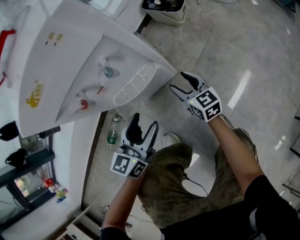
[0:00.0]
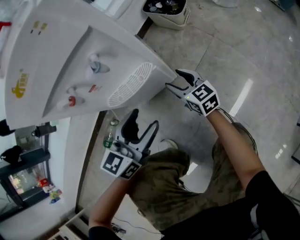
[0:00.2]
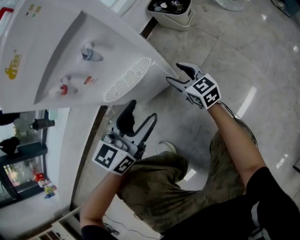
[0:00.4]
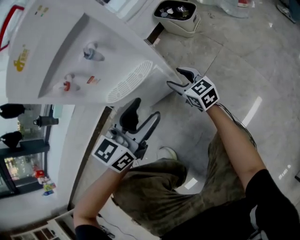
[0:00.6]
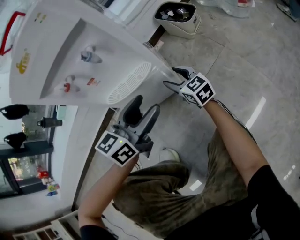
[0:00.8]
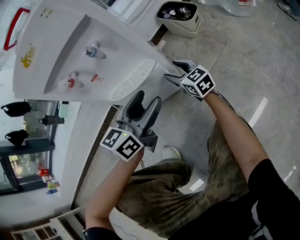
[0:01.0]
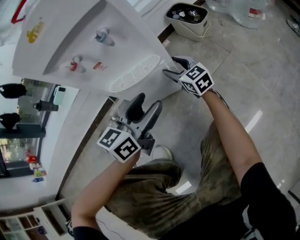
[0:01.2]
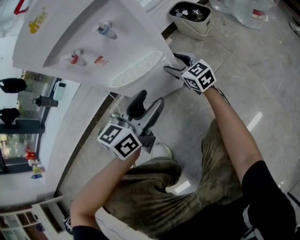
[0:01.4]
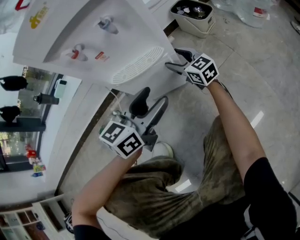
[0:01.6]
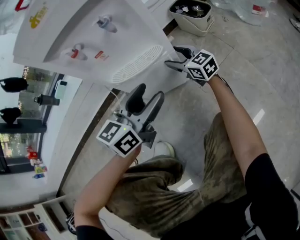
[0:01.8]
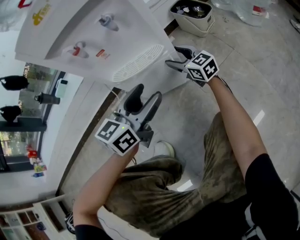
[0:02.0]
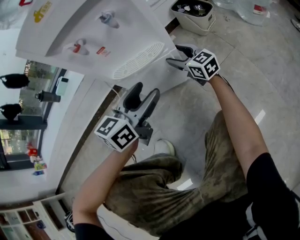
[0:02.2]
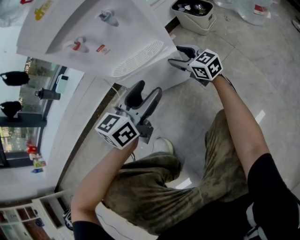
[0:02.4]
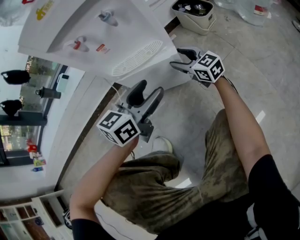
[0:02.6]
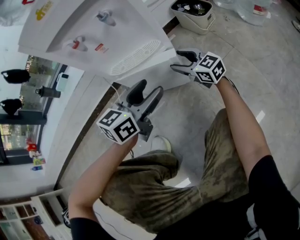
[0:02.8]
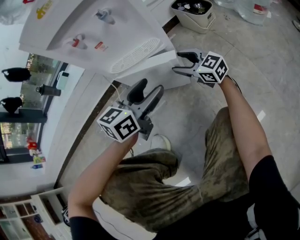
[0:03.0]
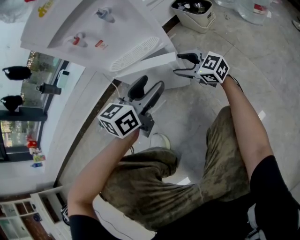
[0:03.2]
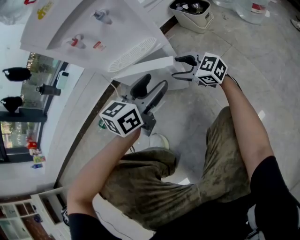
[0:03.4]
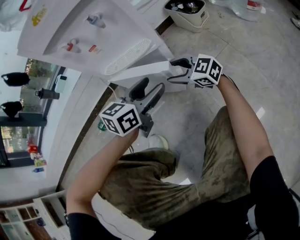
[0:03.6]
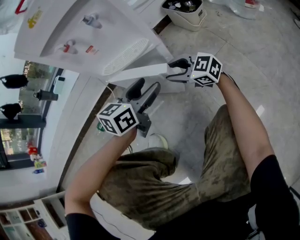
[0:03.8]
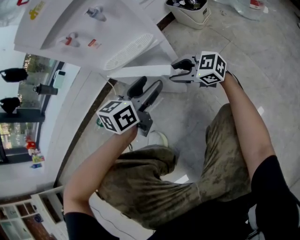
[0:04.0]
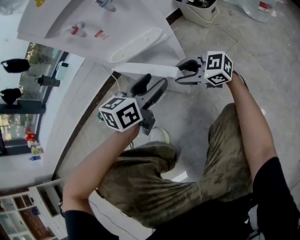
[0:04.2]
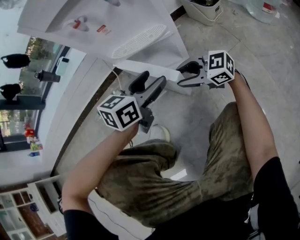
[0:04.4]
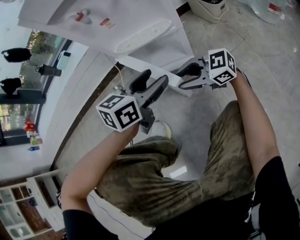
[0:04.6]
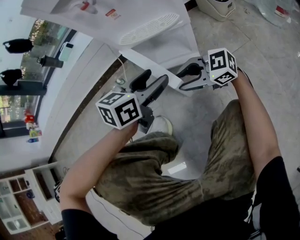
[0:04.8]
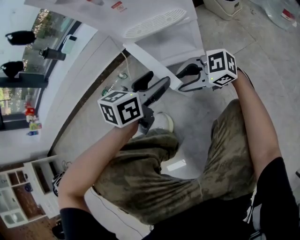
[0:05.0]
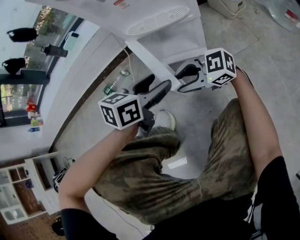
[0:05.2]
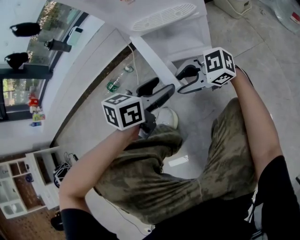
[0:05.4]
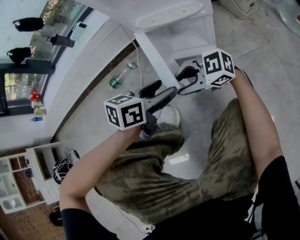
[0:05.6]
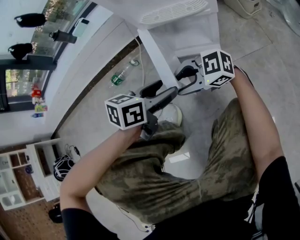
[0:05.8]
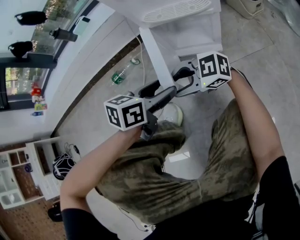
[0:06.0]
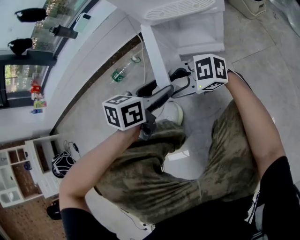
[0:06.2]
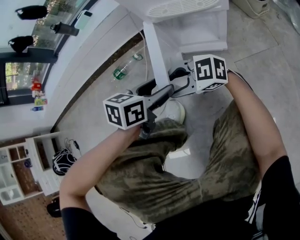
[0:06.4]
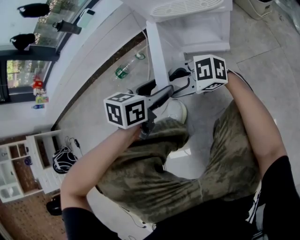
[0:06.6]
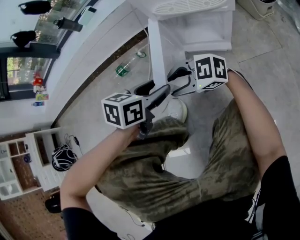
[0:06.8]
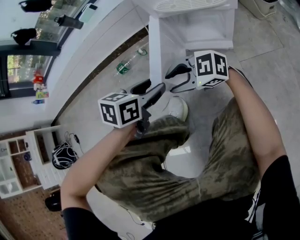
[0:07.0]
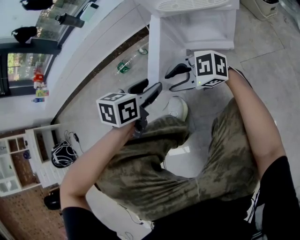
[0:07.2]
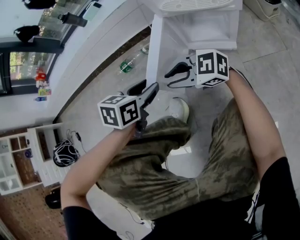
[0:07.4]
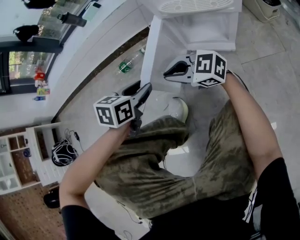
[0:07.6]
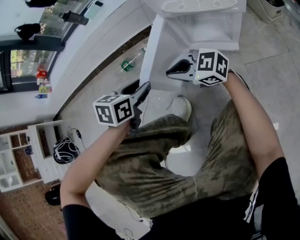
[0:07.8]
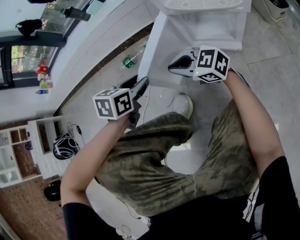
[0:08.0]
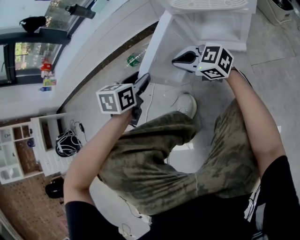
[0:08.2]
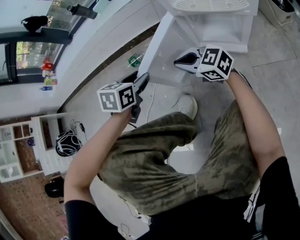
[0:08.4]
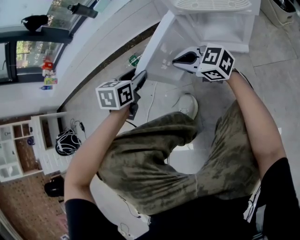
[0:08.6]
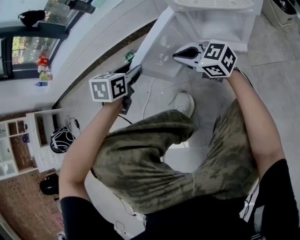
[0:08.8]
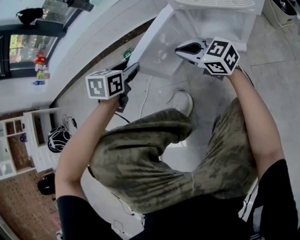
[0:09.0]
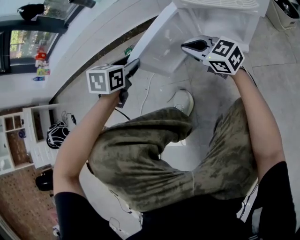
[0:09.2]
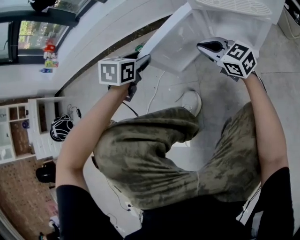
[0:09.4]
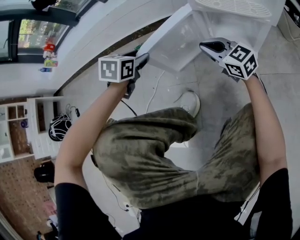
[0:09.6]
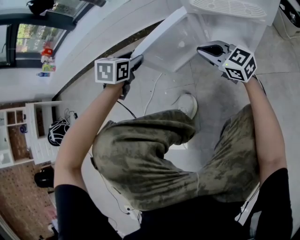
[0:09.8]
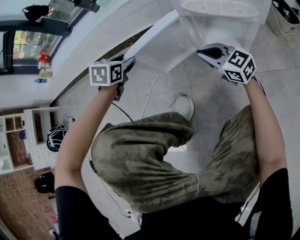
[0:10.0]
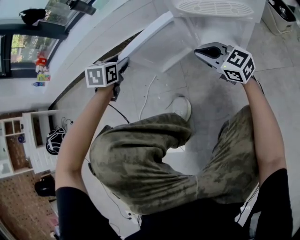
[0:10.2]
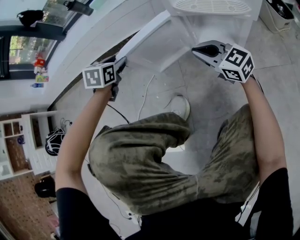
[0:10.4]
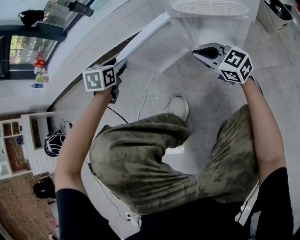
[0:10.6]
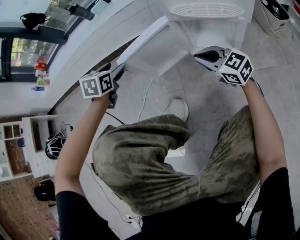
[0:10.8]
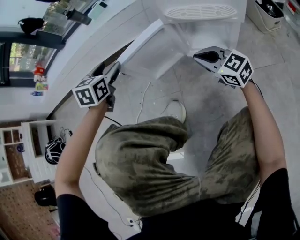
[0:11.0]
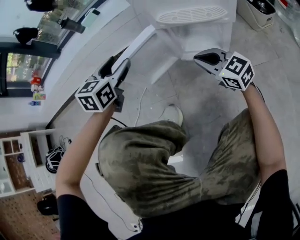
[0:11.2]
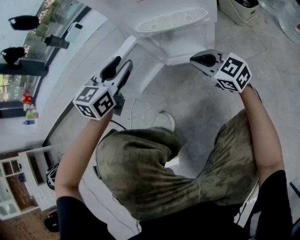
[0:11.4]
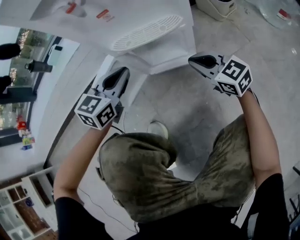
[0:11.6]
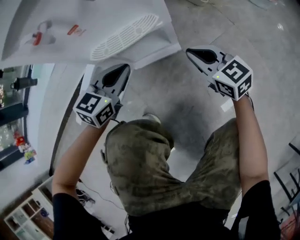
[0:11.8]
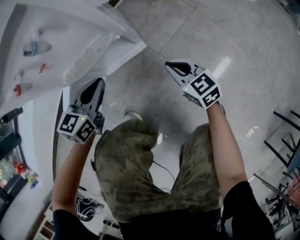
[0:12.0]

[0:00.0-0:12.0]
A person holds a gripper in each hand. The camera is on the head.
0:00.0 to 0:01.6: The left gripper changes place by roughly 5 cm. The right gripper is displaced forward by about 10 cm, and turns by roughly 30 degrees.
0:01.6 to 0:03.0: The right gripper moves backward, roughly 5 cm.
0:03.0 to 0:04.4: The right gripper changes place by approximately 10 cm, swivels approximately 30 degrees, and closes up.
0:04.4 to 0:06.0: The right gripper ends up approximately 15 cm from where it was, and rotates some 30 degrees; the left gripper changes place by about 15 cm, and swivels roughly 20 degrees.
0:06.0 to 0:07.6: The left gripper changes place by about 15 cm, changes its angle by roughly 20 degrees, and closes up. Meanwhile the right gripper shifts by roughly 5 cm, and closes.
0:07.6 to 0:09.0: The left gripper shifts approximately 10 cm forward. The right gripper is displaced forward by approximately 5 cm.
0:09.0 to 0:10.4: The left gripper is displaced forward by approximately 10 cm. The right gripper goes approximately 5 cm to the right.
0:10.4 to 0:12.0: The right gripper shifts by roughly 25 cm, and rotates about 50 degrees; the left gripper moves some 35 cm, turns by about 50 degrees, and closes.

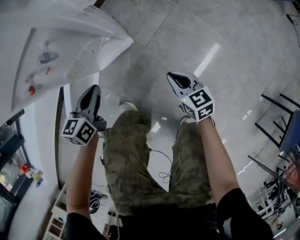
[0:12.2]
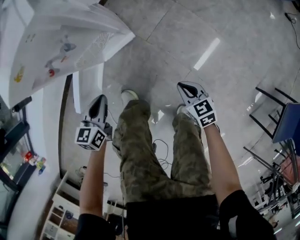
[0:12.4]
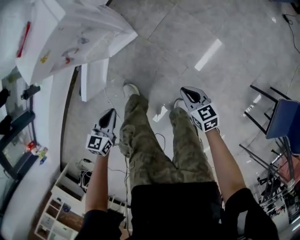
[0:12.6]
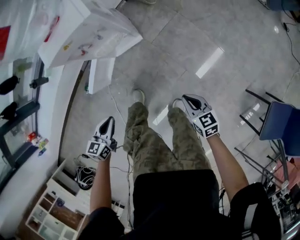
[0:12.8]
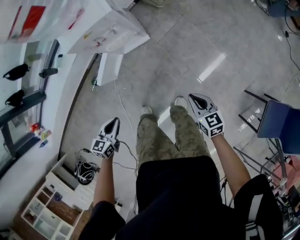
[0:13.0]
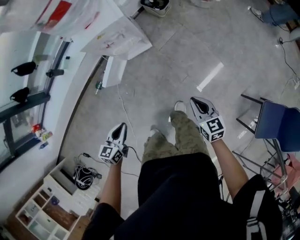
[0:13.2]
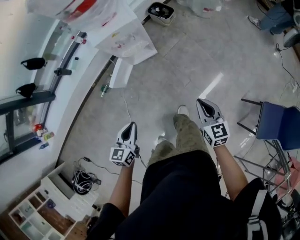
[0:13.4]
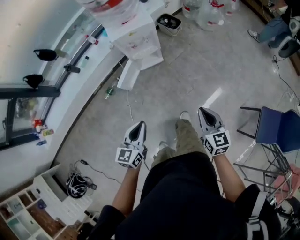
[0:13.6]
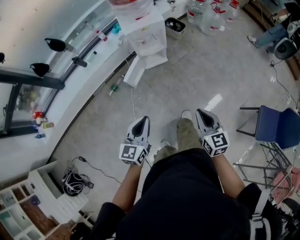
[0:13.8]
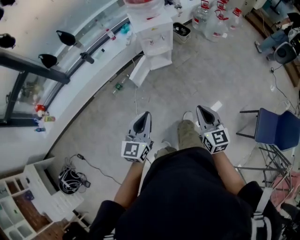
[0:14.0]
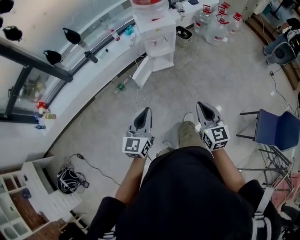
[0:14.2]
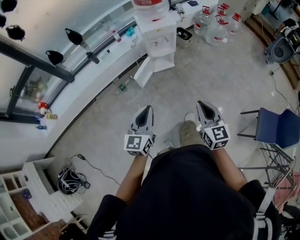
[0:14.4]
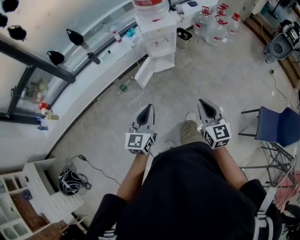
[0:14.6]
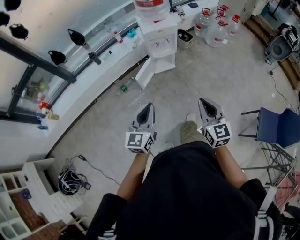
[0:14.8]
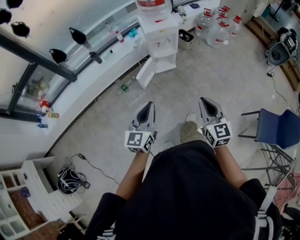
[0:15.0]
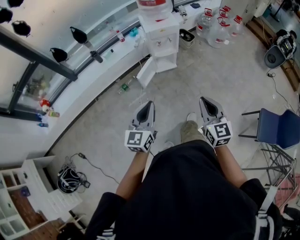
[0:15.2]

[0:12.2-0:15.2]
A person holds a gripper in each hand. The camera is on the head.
0:12.2 to 0:13.8: Both grippers are carried backward, roughly 40 cm. The grippers both shift upward by about 60 cm. The left gripper swivels about 20 degrees.
0:13.8 to 0:15.2: The left gripper travels backward, upward and to the left by approximately 15 cm, while the right gripper shifts some 15 cm upward, backward and to the left.

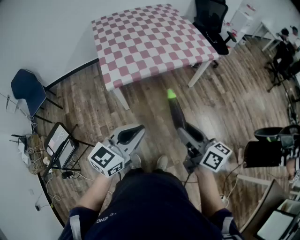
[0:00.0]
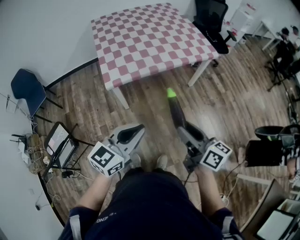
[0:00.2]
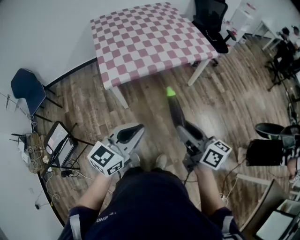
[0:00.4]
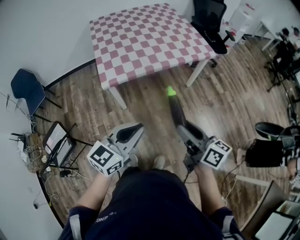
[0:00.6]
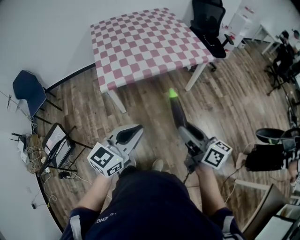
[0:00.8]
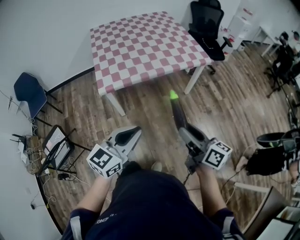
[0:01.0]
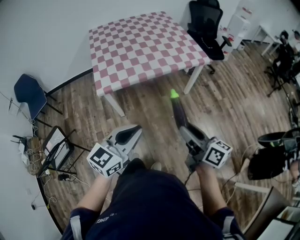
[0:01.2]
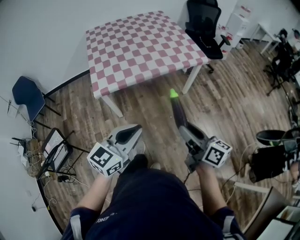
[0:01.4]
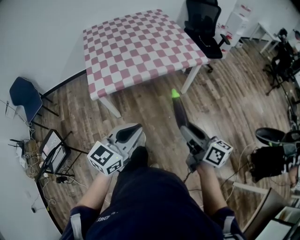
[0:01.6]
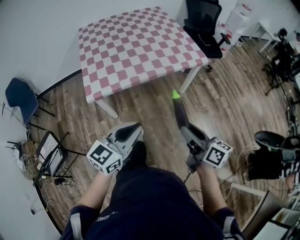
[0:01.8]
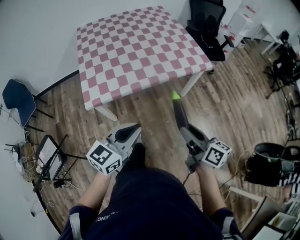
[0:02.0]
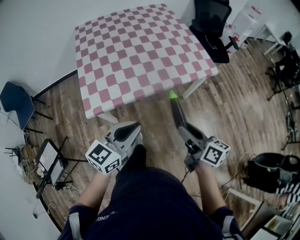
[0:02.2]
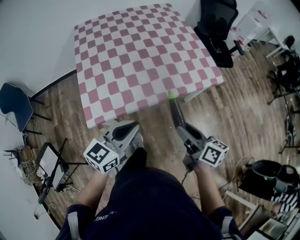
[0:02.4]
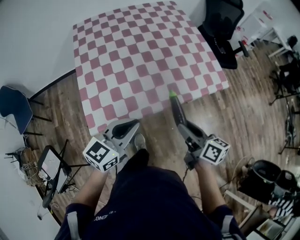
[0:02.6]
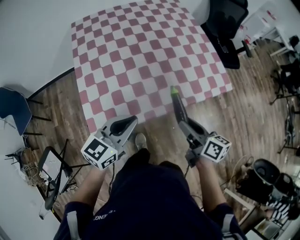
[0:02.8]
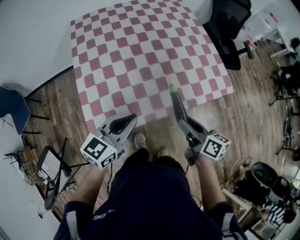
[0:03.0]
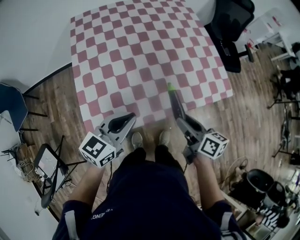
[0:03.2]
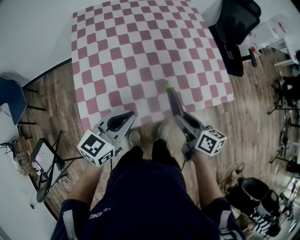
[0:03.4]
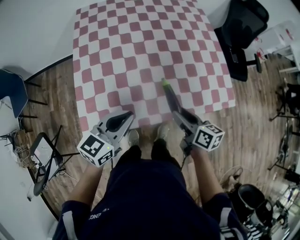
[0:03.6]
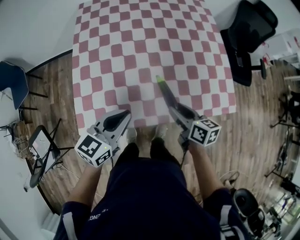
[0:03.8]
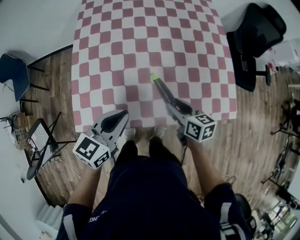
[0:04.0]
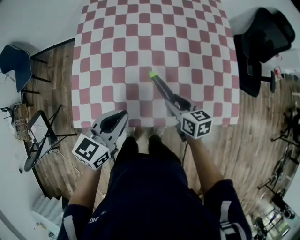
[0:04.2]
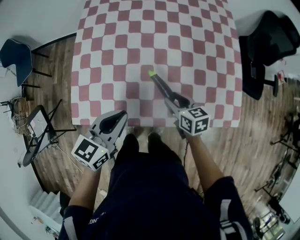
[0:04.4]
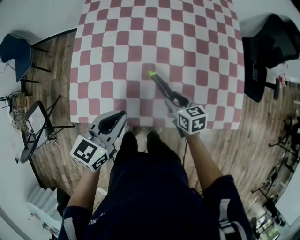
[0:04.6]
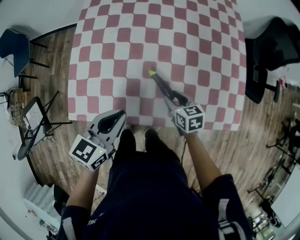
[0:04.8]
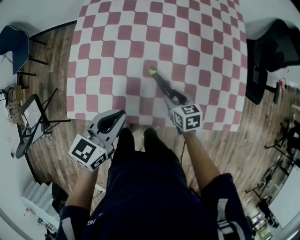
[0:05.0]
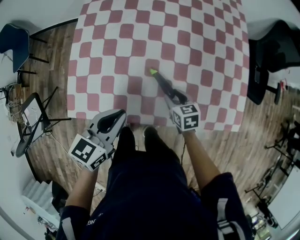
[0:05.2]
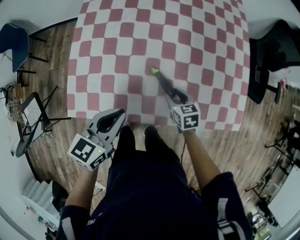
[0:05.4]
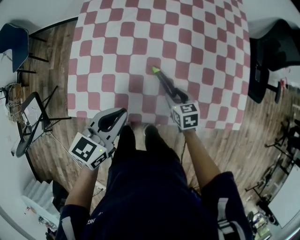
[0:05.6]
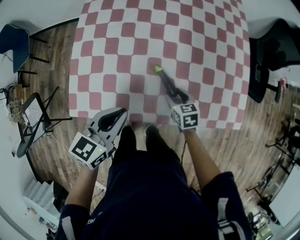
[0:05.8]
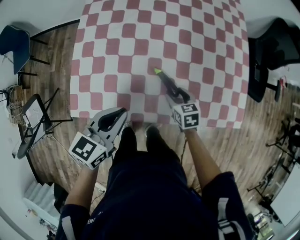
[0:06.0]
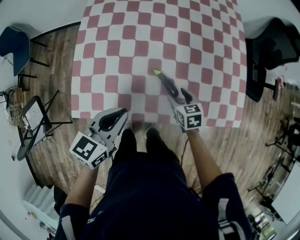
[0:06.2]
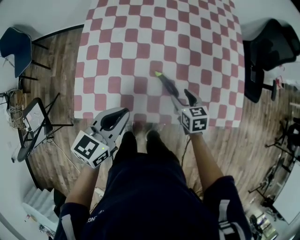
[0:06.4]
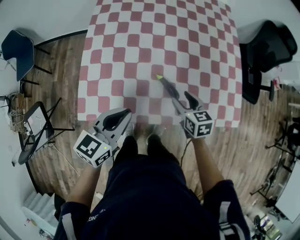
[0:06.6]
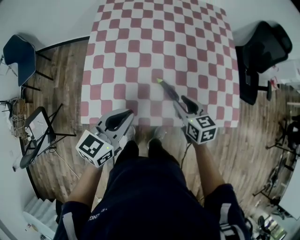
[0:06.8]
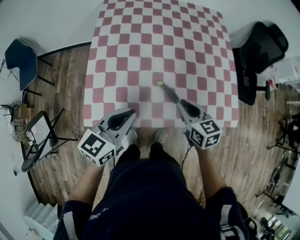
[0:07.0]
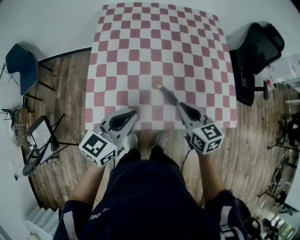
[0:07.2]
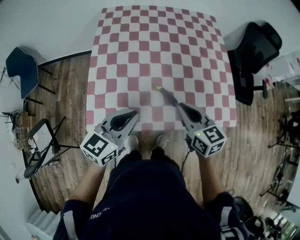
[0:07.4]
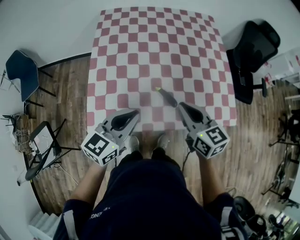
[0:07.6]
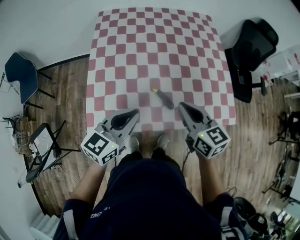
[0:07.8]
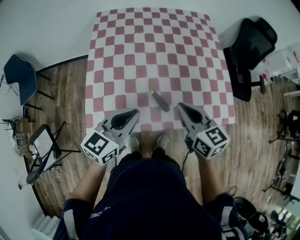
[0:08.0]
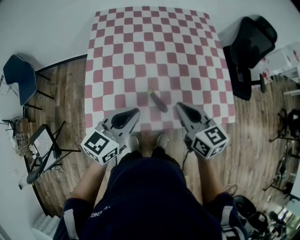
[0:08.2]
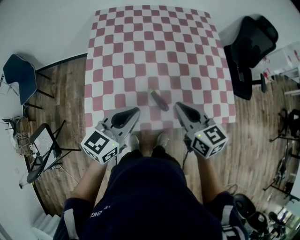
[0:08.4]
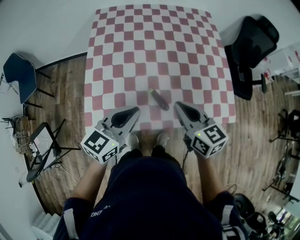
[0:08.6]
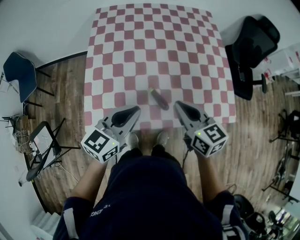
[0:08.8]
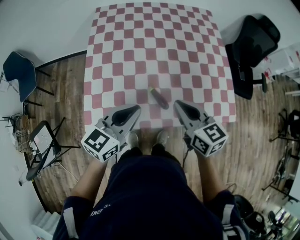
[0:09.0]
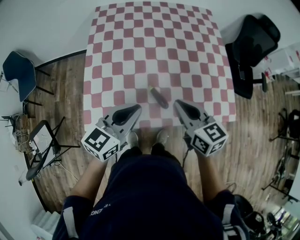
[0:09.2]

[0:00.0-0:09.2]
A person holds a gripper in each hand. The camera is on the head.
0:00.0 to 0:01.6: The two grippers go about 10 cm to the right.
0:01.6 to 0:03.0: The grippers both shift forward by about 40 cm.
0:03.0 to 0:04.6: The right gripper shifts some 25 cm forward and downward, and swivels about 40 degrees. The left gripper shifts approximately 10 cm downward and forward, and turns by approximately 30 degrees.
0:04.6 to 0:06.2: The grippers make only small movements.
0:06.2 to 0:07.6: The right gripper goes roughly 25 cm upward, rotates approximately 30 degrees, and closes, while the left gripper goes some 10 cm upward.
0:07.6 to 0:09.2: There are only small adjustments of the grippers.
